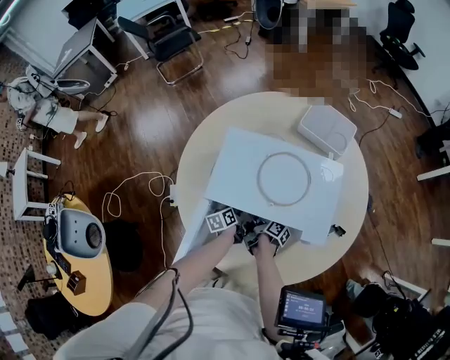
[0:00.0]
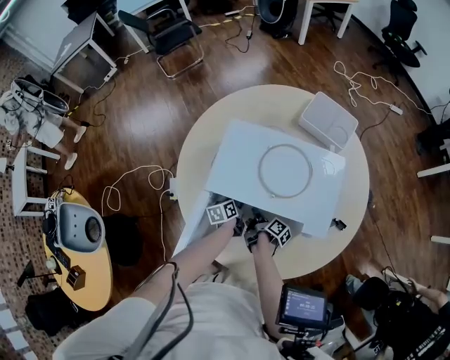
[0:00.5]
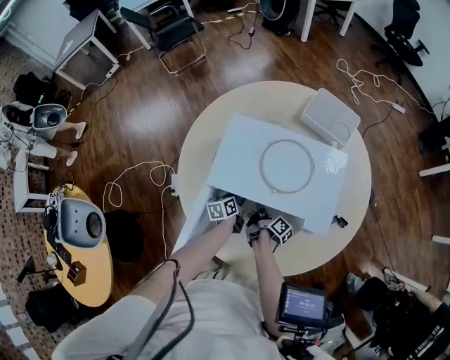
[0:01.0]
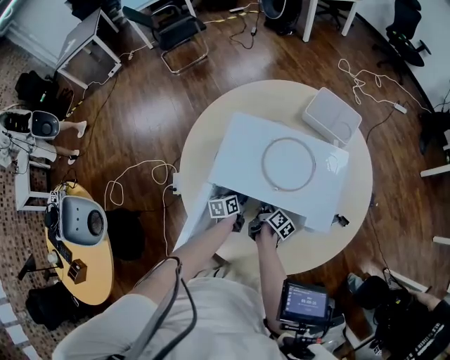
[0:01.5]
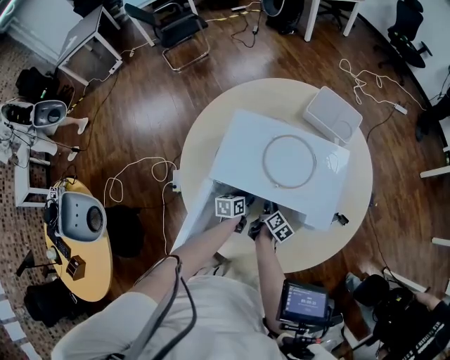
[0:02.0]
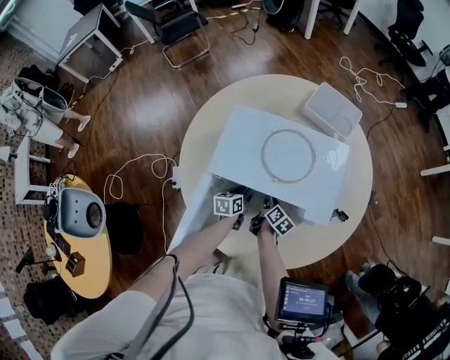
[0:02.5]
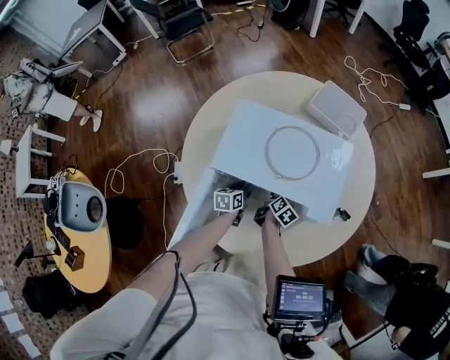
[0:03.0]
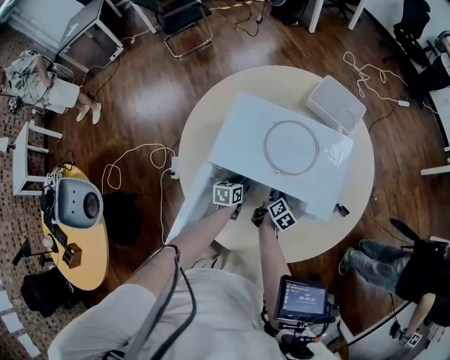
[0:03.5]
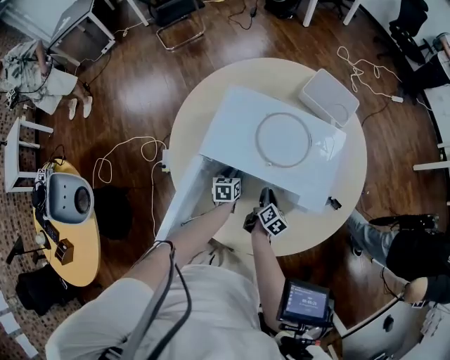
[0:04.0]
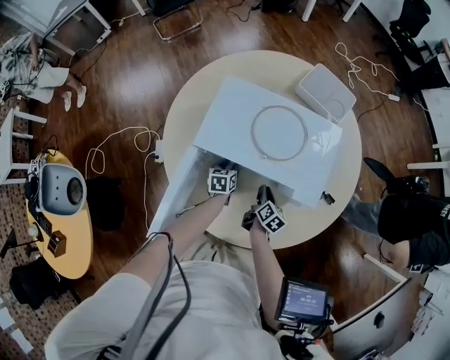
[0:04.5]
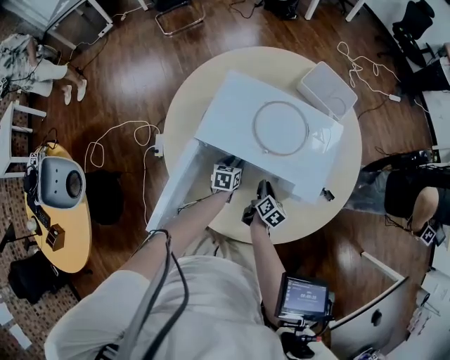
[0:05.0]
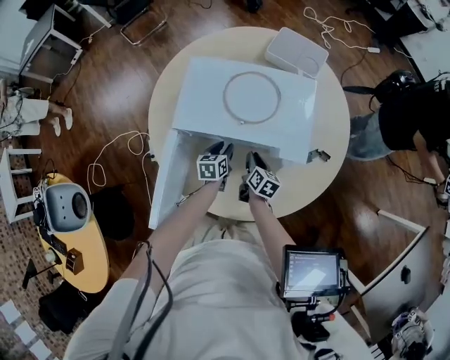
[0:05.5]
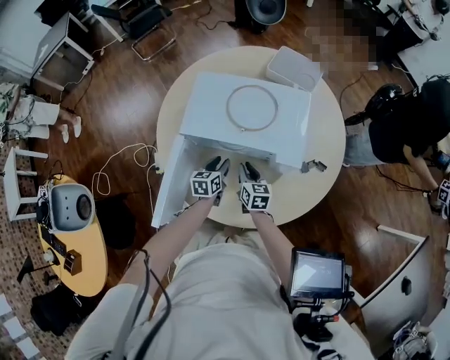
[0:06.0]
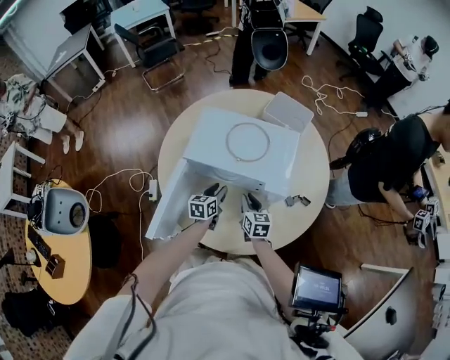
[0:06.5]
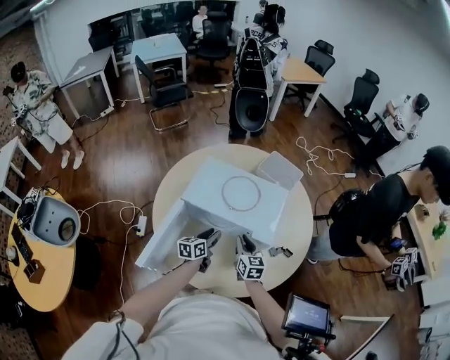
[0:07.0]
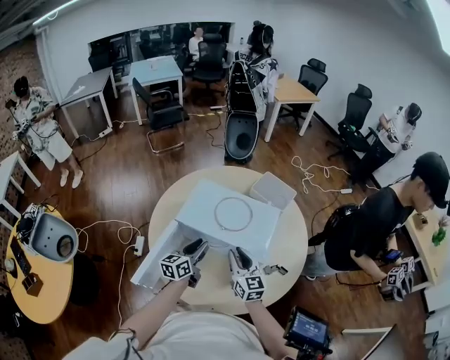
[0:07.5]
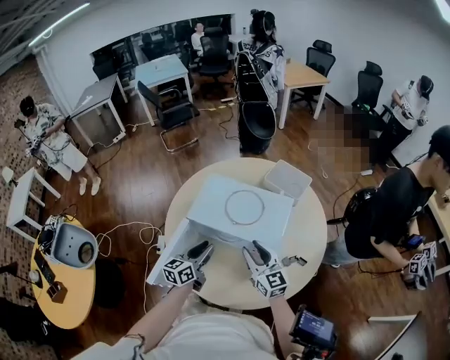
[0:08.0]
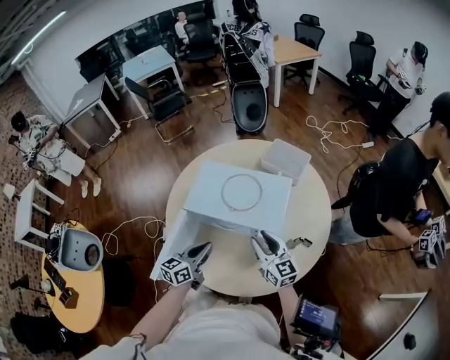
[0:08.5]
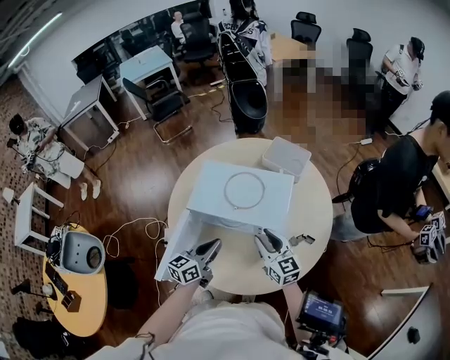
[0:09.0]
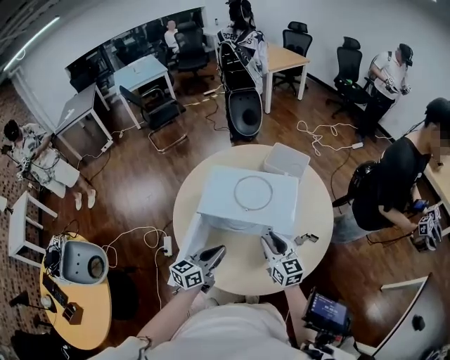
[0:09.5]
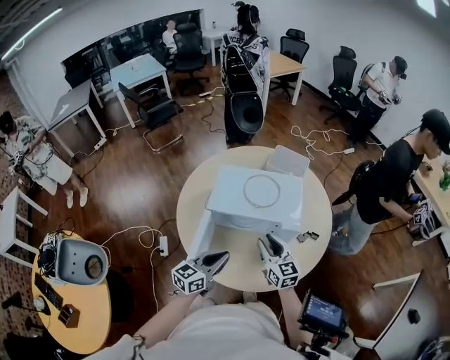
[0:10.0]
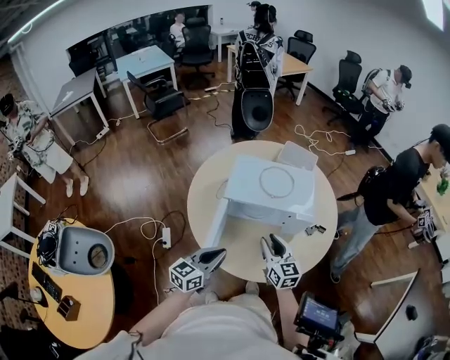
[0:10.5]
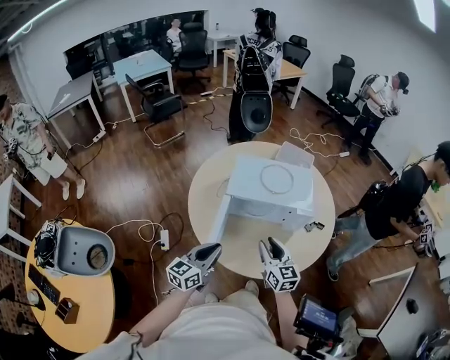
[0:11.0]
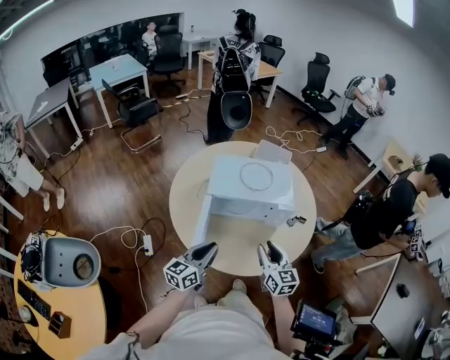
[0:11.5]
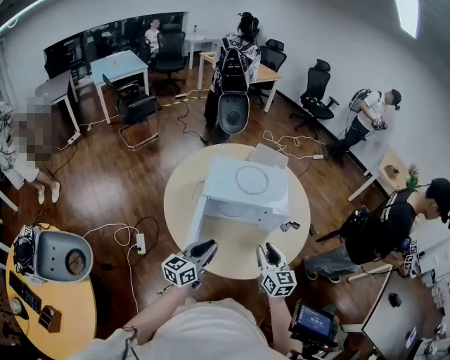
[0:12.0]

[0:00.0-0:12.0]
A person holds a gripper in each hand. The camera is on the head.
0:00.0 to 0:02.0: The right gripper moves to the right, approximately 10 cm, and changes its angle by some 30 degrees; the left gripper ends up approximately 5 cm from where it was.
0:02.0 to 0:04.0: The grippers stay close to where they were, moving slightly.
0:04.0 to 0:06.0: The right gripper goes about 10 cm upward, and turns by approximately 40 degrees; the left gripper heads upward and backward, covering some 10 cm.
0:06.0 to 0:08.0: The grippers both shift upward by roughly 25 cm. The left gripper turns by about 20 degrees, while the right gripper turns by about 40 degrees.
0:08.0 to 0:10.0: The left gripper moves backward, roughly 10 cm, swivels some 30 degrees, and closes. The right gripper heads to the left and backward, covering approximately 10 cm.
0:10.0 to 0:12.0: The left gripper moves to the left and backward, approximately 10 cm, while the right gripper goes about 10 cm backward.

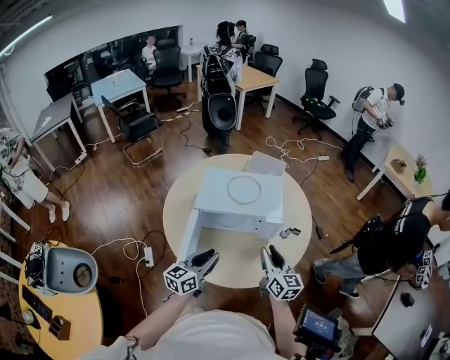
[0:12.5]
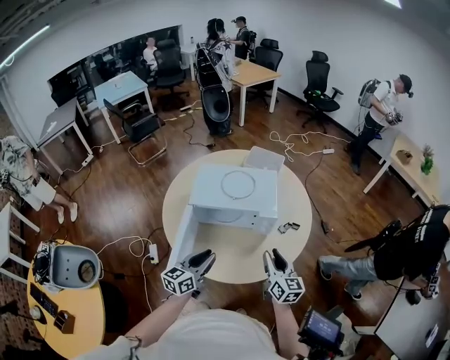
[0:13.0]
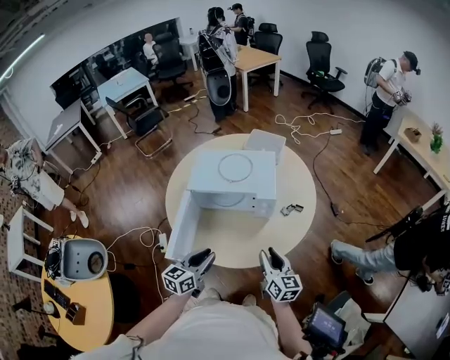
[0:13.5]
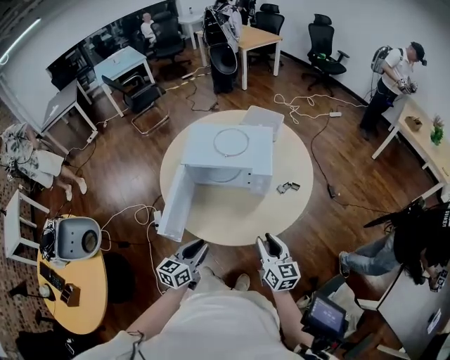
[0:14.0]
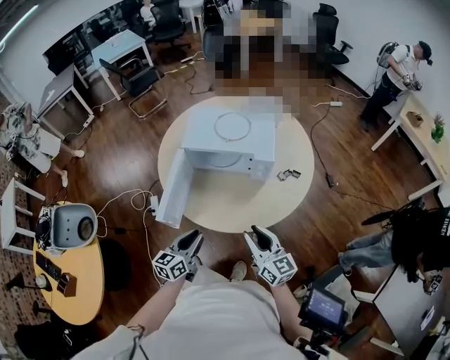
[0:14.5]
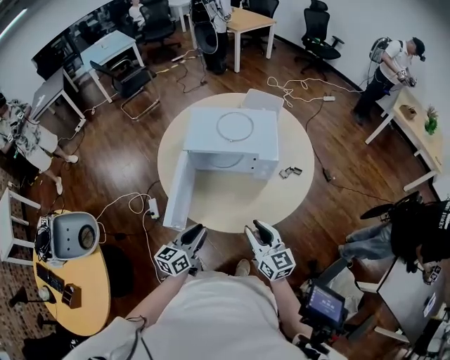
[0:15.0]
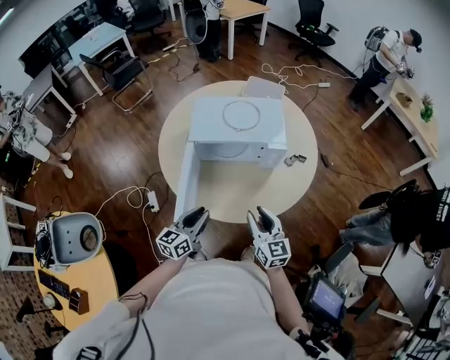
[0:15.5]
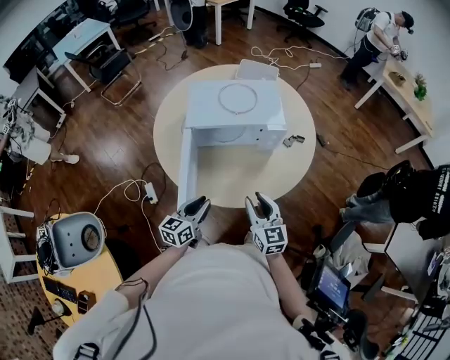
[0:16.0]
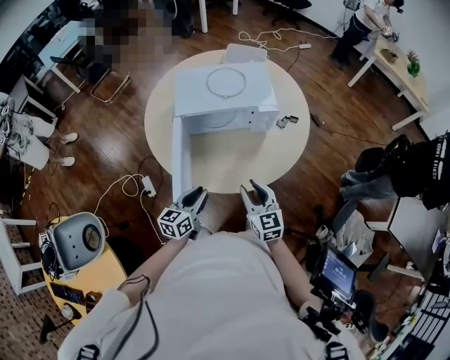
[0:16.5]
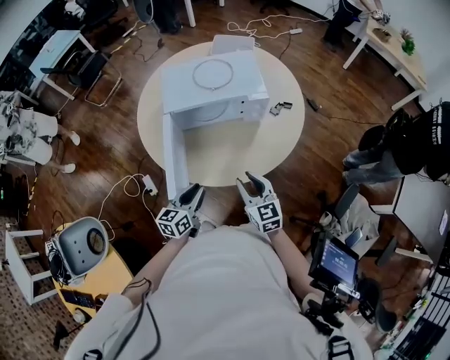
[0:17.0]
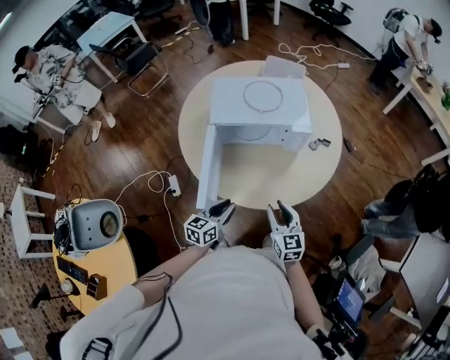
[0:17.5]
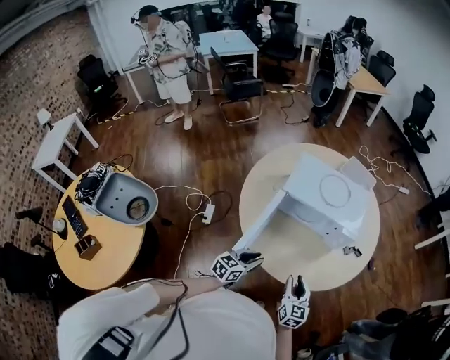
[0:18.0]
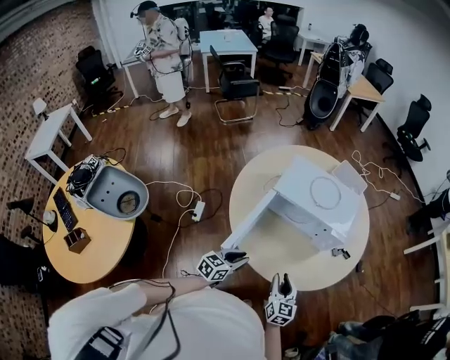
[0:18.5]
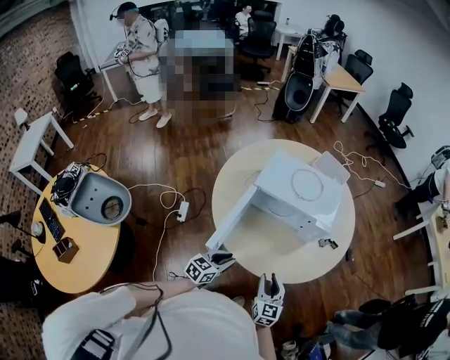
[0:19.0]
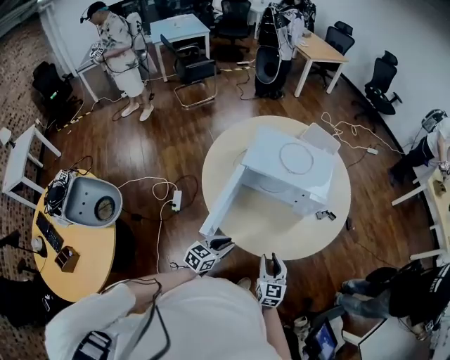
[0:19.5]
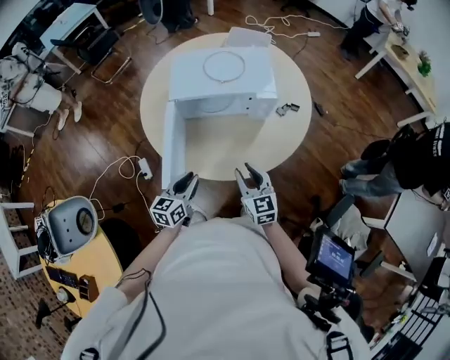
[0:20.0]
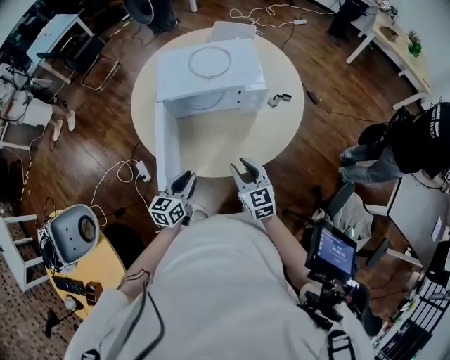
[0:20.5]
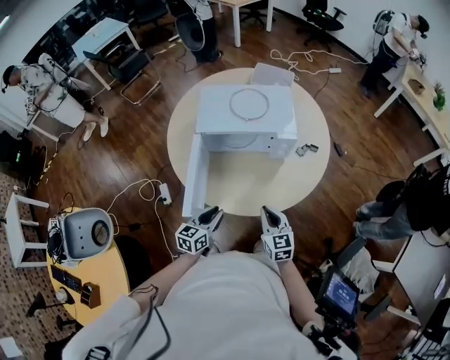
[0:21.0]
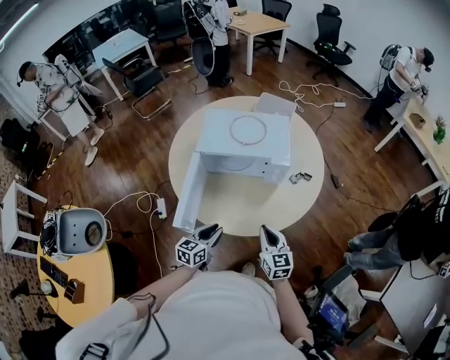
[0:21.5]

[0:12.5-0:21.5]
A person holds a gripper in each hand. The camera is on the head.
0:12.5 to 0:14.5: The right gripper heads backward, covering about 15 cm. Meanwhile the left gripper heads backward, downward and to the right, covering about 15 cm.
0:14.5 to 0:17.0: The grippers both shift to the left and downward by roughly 10 cm. The right gripper rotates about 30 degrees.
0:17.0 to 0:19.5: There are only small adjustments of the grippers.
0:19.5 to 0:21.5: The grippers both shift to the right by some 5 cm. The right gripper closes.

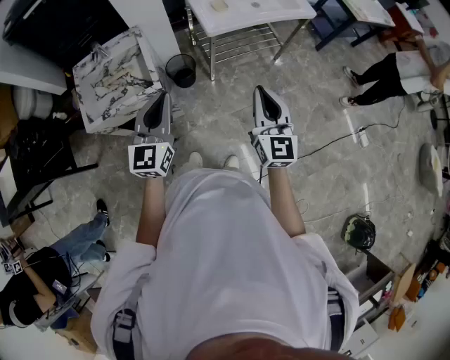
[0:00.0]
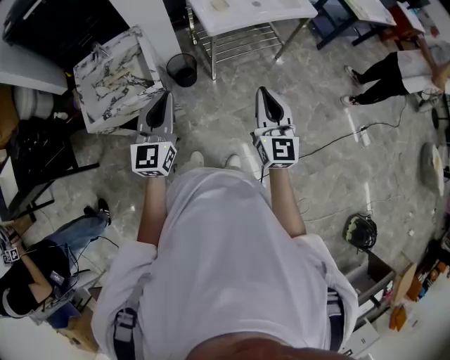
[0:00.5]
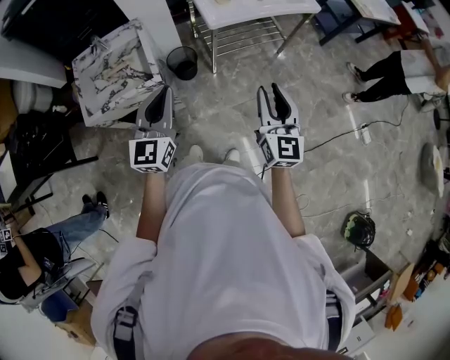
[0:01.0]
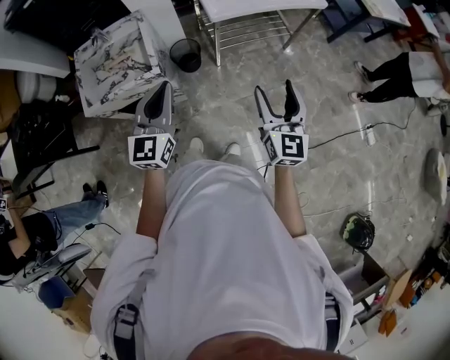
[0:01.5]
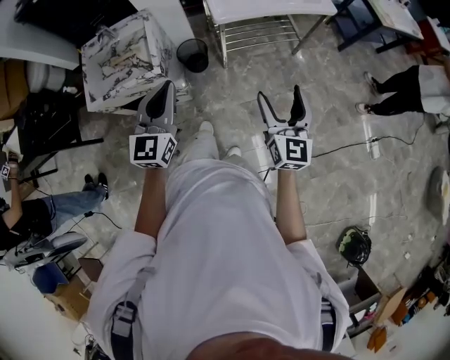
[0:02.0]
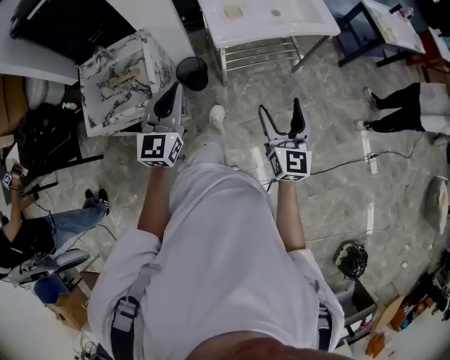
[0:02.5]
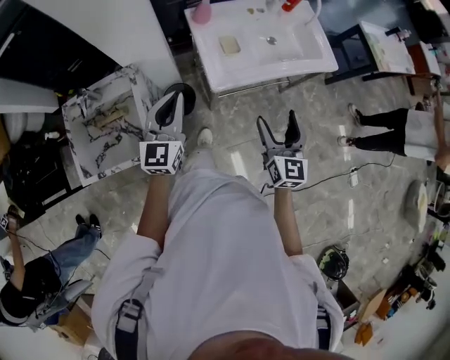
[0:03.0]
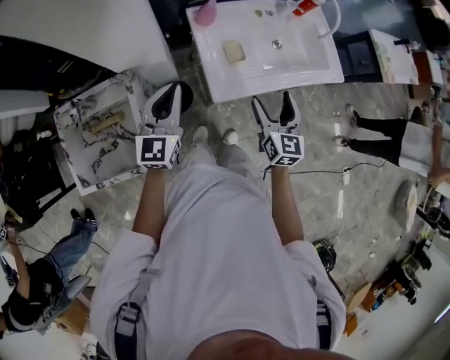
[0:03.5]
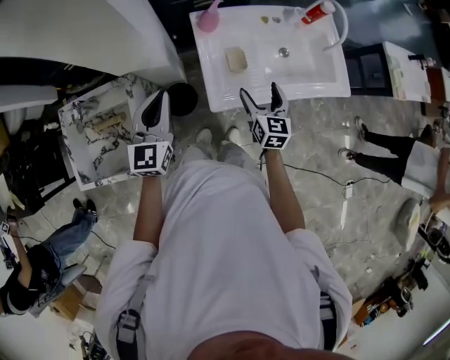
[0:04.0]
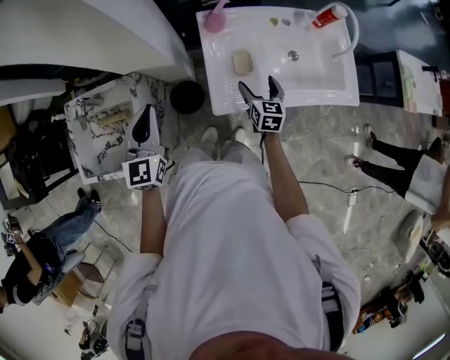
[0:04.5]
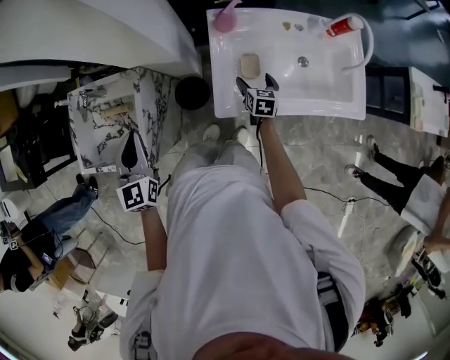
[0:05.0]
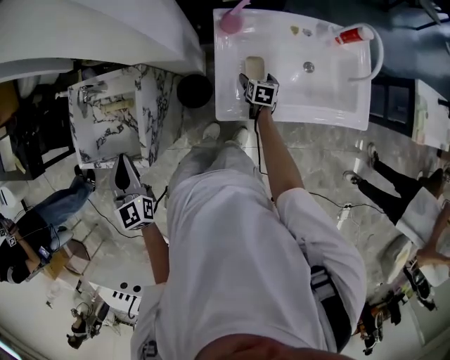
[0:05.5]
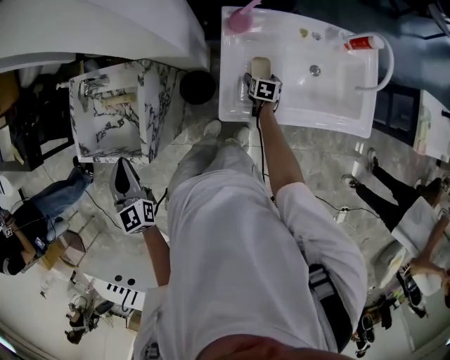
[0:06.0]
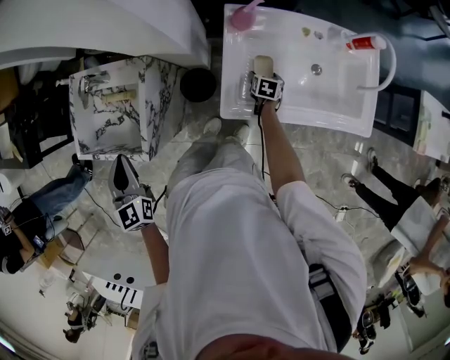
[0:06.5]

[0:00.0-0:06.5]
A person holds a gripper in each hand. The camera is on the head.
0:00.0 to 0:02.0: The two grippers go some 10 cm to the right. The right gripper opens its fingers.
0:02.0 to 0:04.5: Both grippers are carried forward, about 50 cm. The right gripper changes its angle by about 30 degrees.
0:04.5 to 0:06.5: The right gripper shifts about 20 cm downward and forward, and rotates about 30 degrees, while the left gripper travels to the left and backward by approximately 15 cm, and turns by some 30 degrees.
